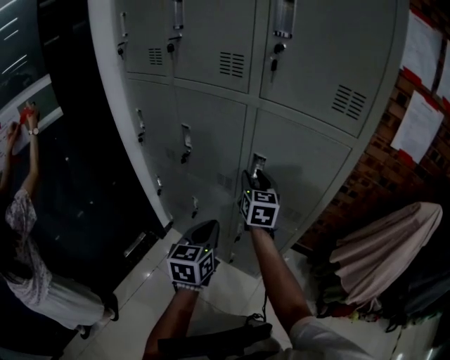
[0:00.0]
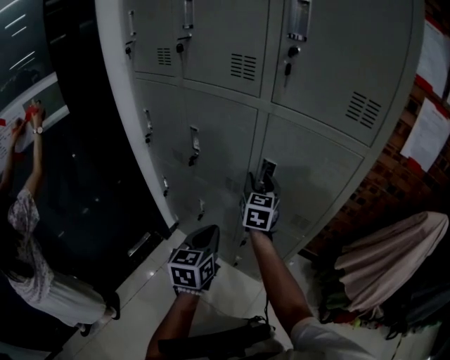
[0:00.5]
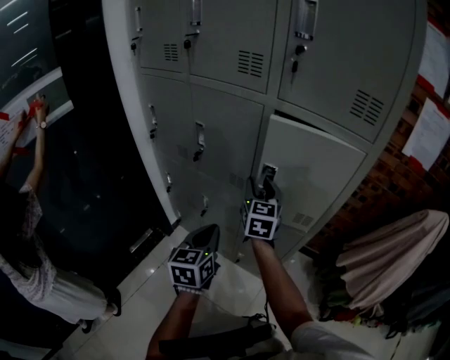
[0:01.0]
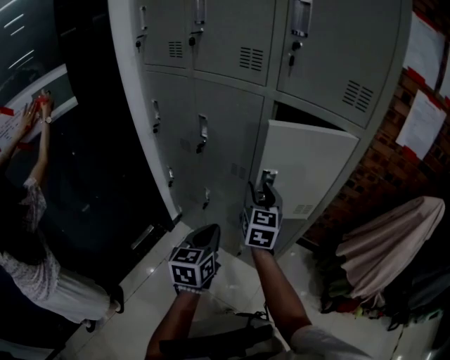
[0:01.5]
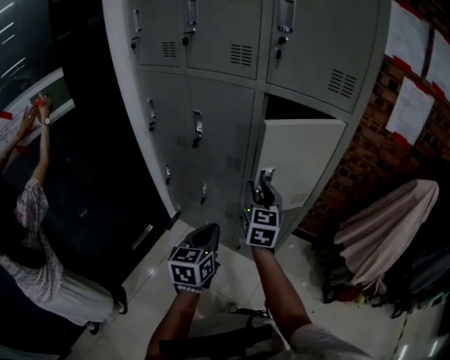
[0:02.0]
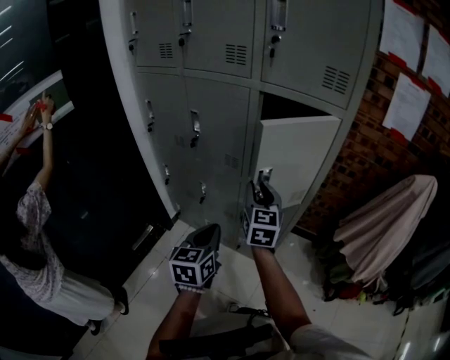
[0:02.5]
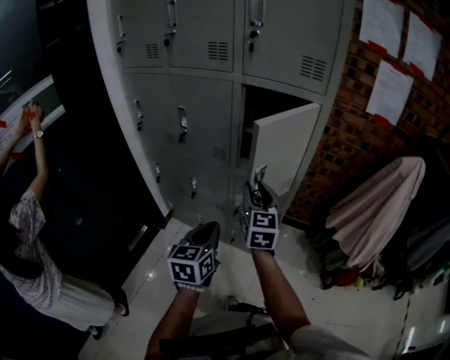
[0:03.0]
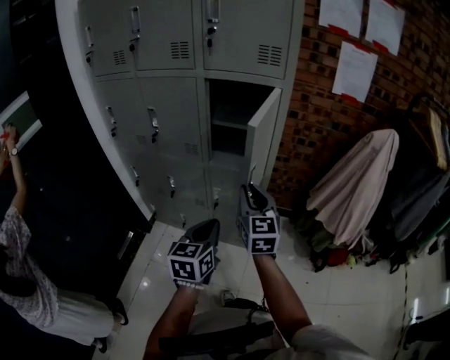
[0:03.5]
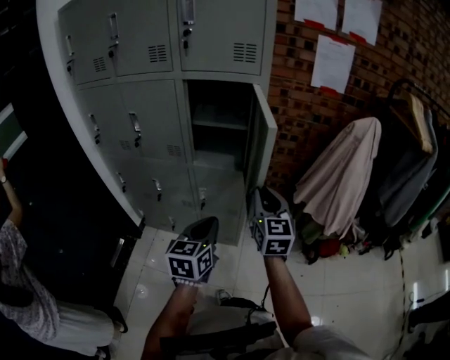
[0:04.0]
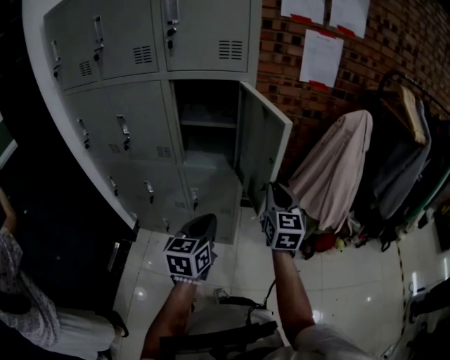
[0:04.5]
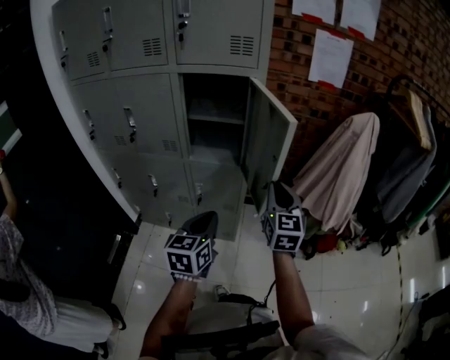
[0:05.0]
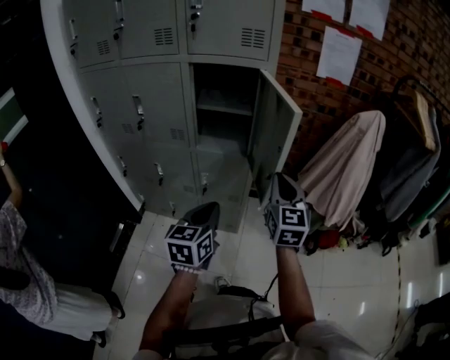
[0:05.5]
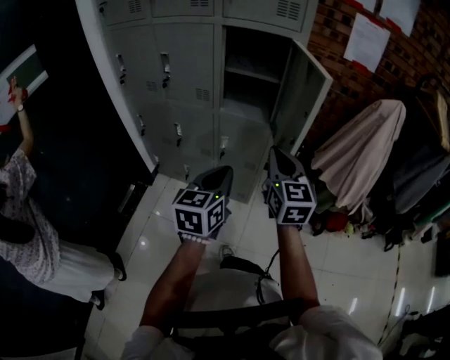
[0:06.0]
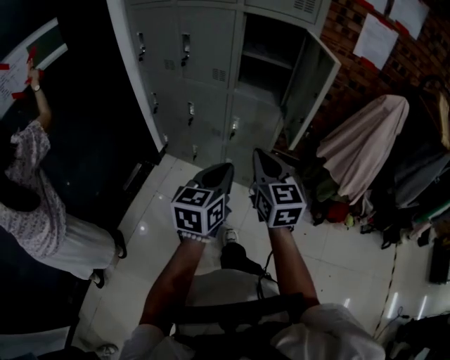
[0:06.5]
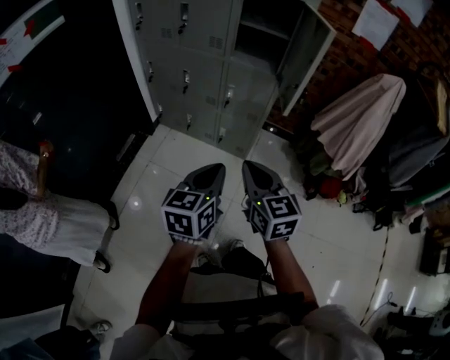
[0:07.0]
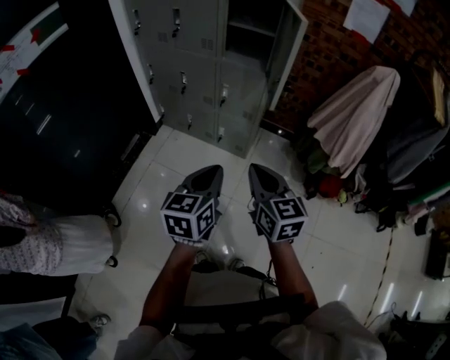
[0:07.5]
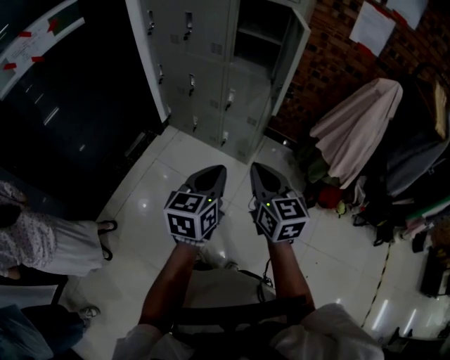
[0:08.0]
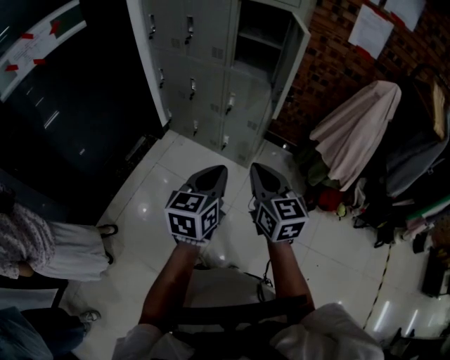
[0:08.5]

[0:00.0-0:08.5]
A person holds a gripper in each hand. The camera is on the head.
0:00.0 to 0:02.0: Both grippers move backward, about 10 cm.
0:02.0 to 0:04.0: The grippers both shift to the right and backward by approximately 20 cm. The right gripper closes.
0:04.0 to 0:06.5: The left gripper heads backward, covering some 15 cm. Meanwhile the right gripper travels backward and to the left by some 20 cm.
0:06.5 to 0:08.5: Both grippers move backward and to the right, roughly 20 cm.

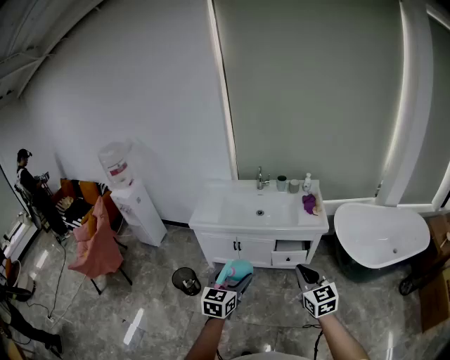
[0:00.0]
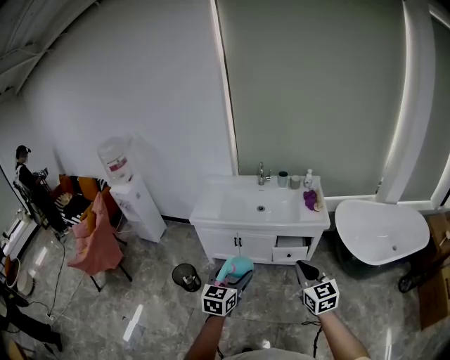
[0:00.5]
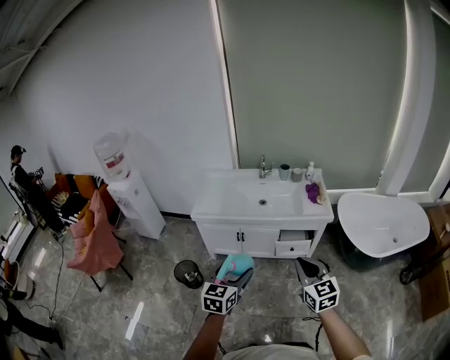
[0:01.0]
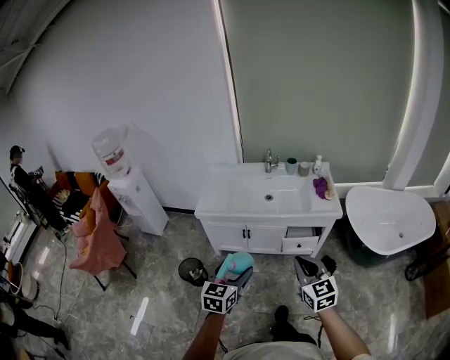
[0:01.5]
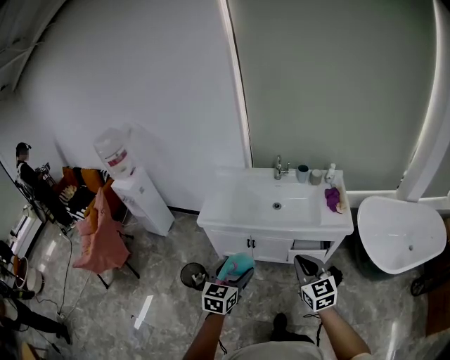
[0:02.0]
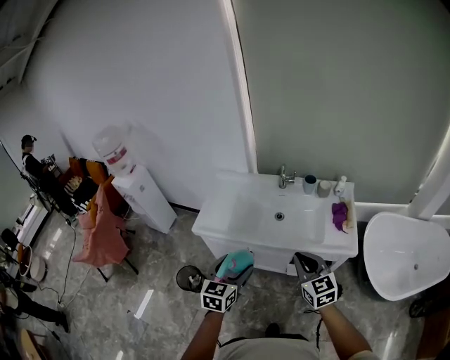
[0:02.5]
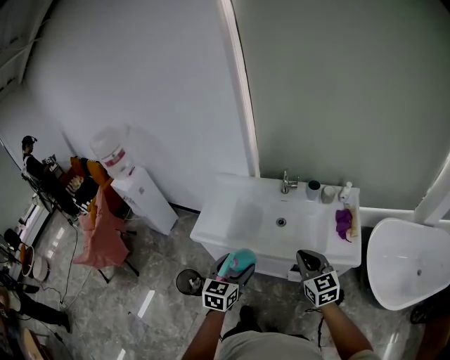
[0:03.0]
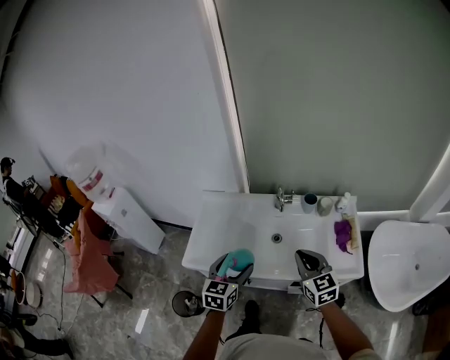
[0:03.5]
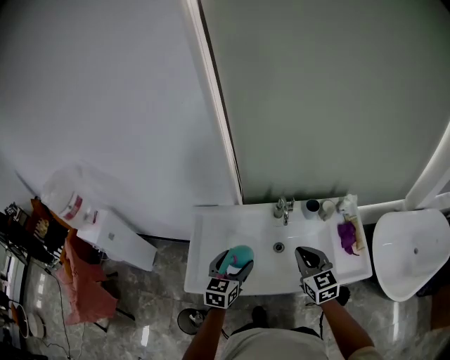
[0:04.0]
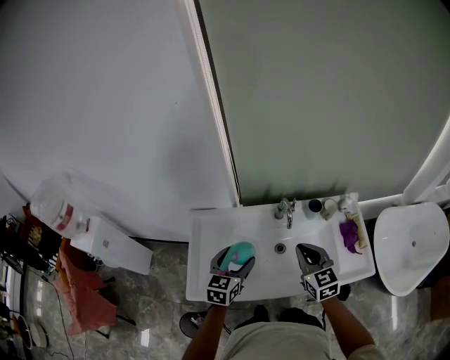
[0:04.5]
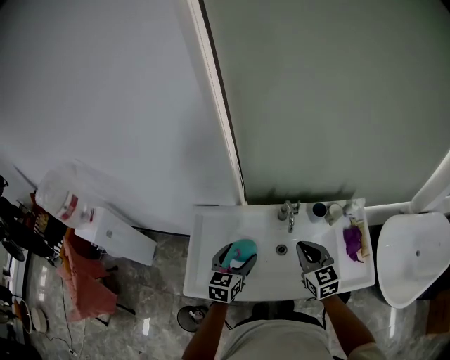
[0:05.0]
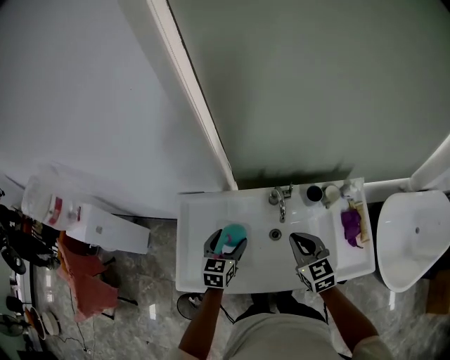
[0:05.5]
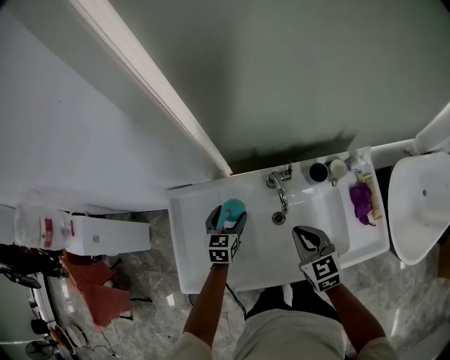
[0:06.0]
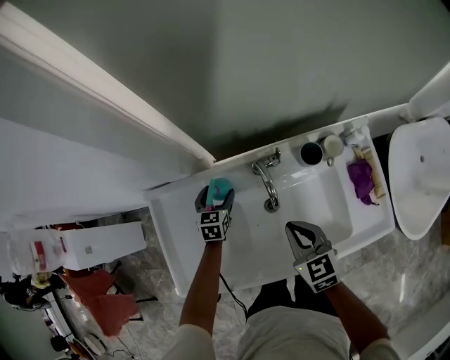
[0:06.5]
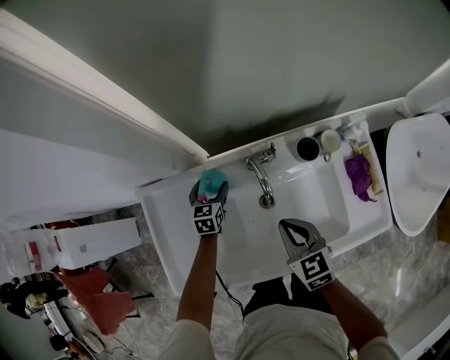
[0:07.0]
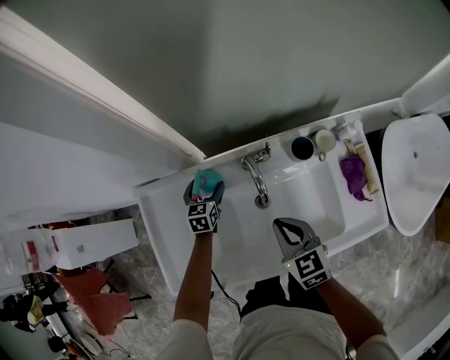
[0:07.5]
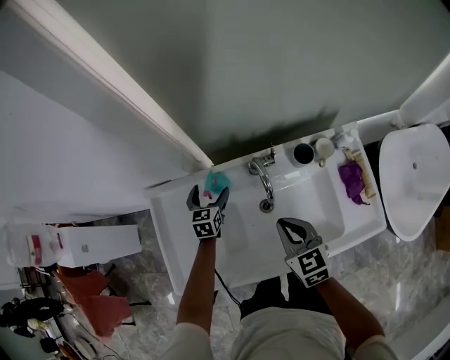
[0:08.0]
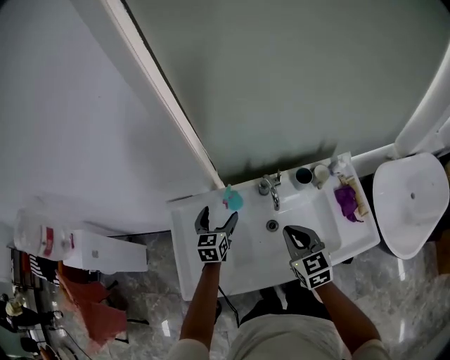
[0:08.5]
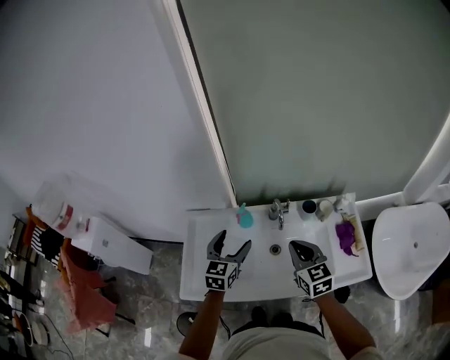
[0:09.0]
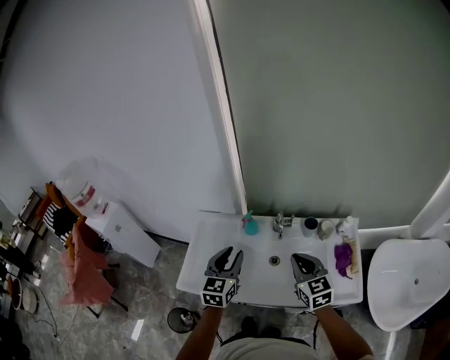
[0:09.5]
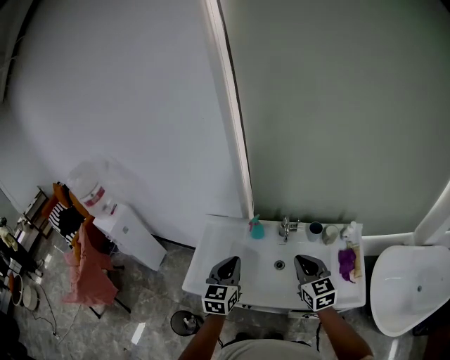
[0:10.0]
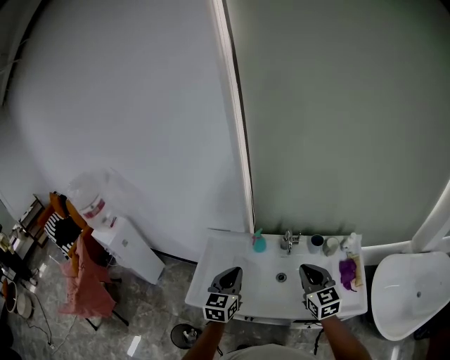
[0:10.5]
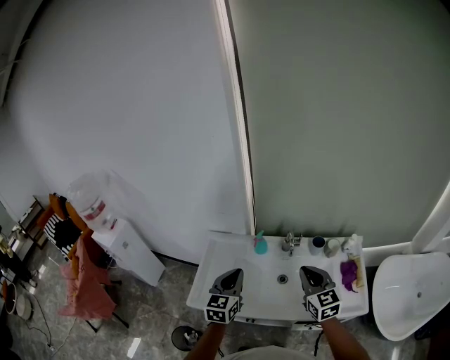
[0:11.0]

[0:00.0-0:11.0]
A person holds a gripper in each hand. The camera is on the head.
0:00.0 to 0:02.0: Both grippers move forward and to the left, some 20 cm.
0:02.0 to 0:03.5: The two grippers go about 35 cm forward.
0:03.5 to 0:05.5: The grippers both shift forward by approximately 25 cm.
0:05.5 to 0:07.5: The right gripper travels downward by some 10 cm; the left gripper heads downward and forward, covering roughly 30 cm.
0:07.5 to 0:09.0: The left gripper goes some 35 cm upward and backward, and changes its angle by about 20 degrees. The right gripper travels upward and backward by approximately 20 cm.
0:09.0 to 0:11.0: The left gripper shifts some 15 cm backward and upward, and closes up. The right gripper travels upward and backward by roughly 10 cm.

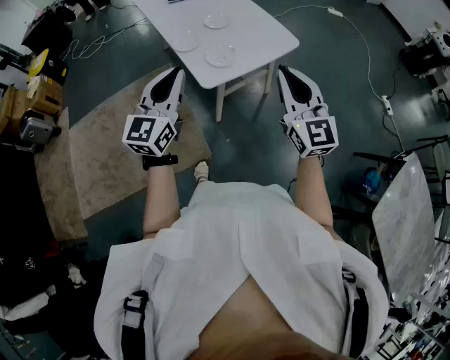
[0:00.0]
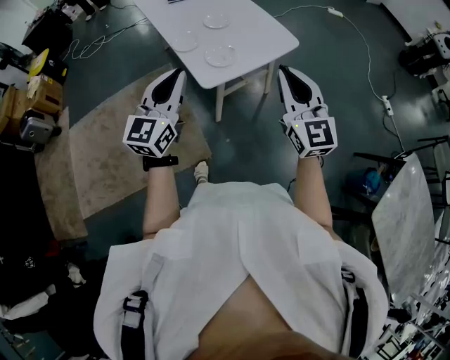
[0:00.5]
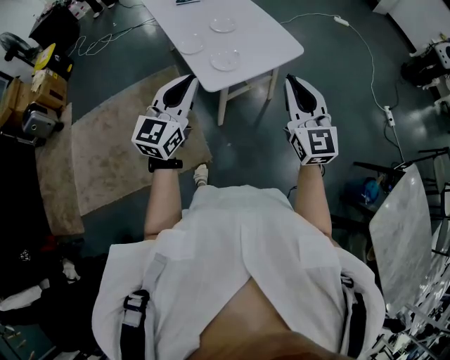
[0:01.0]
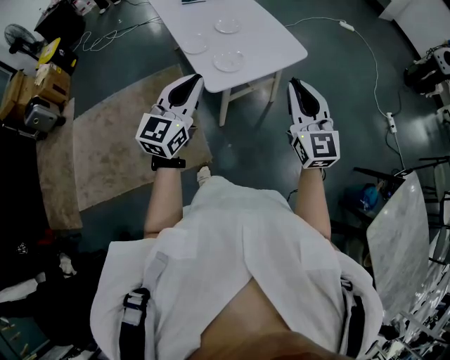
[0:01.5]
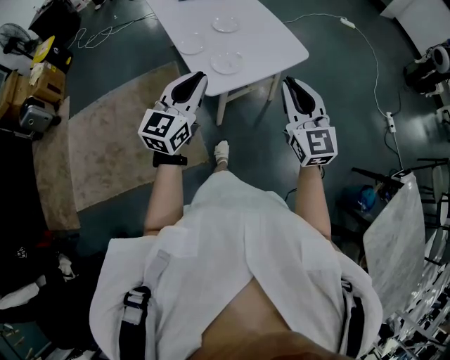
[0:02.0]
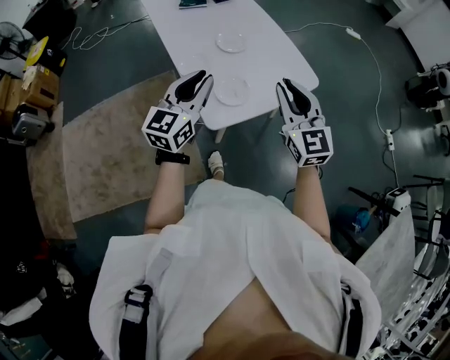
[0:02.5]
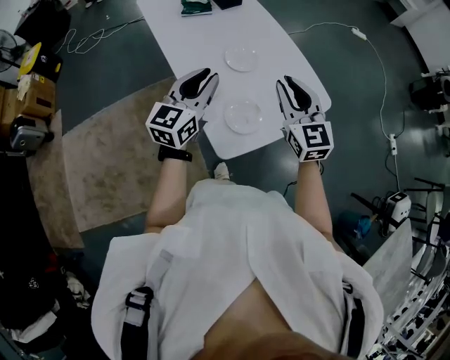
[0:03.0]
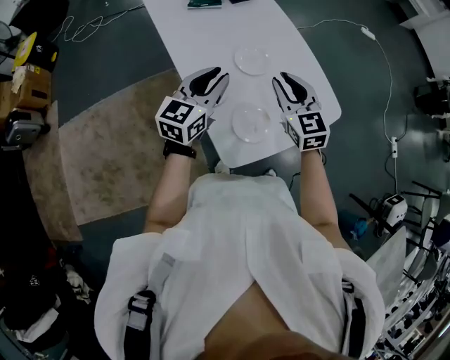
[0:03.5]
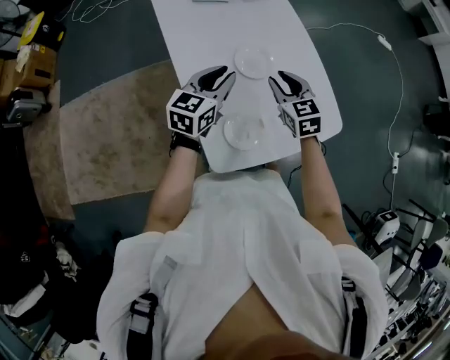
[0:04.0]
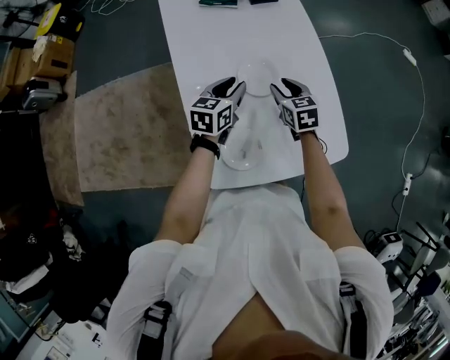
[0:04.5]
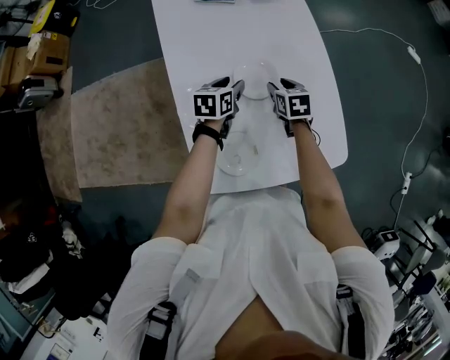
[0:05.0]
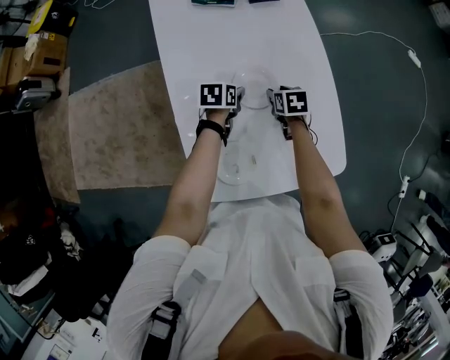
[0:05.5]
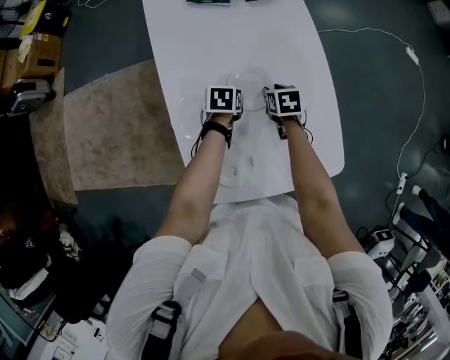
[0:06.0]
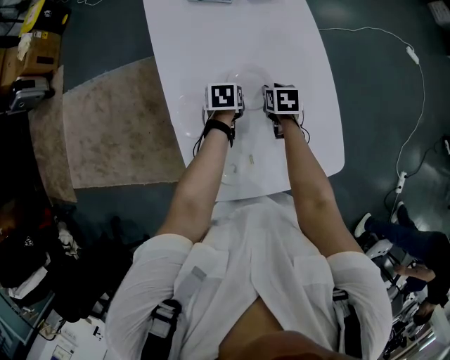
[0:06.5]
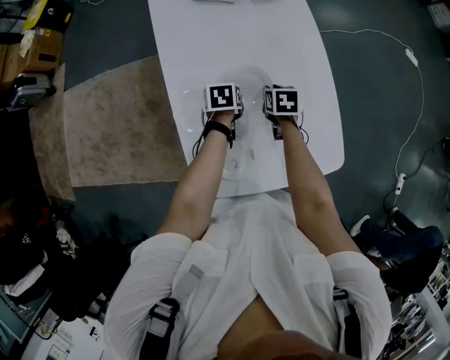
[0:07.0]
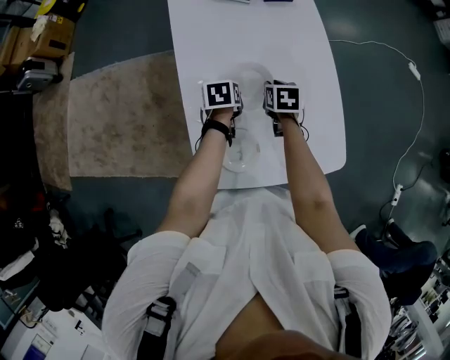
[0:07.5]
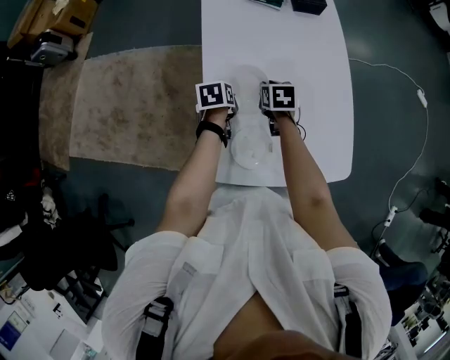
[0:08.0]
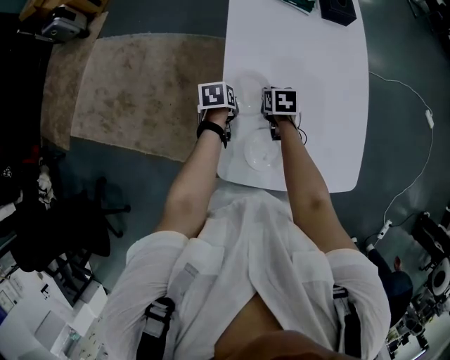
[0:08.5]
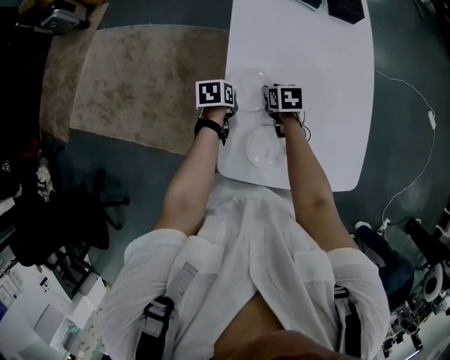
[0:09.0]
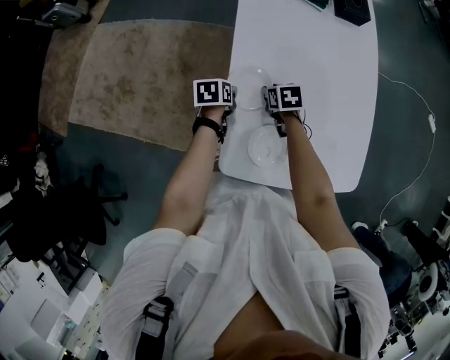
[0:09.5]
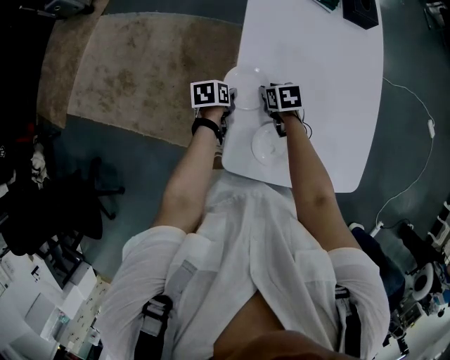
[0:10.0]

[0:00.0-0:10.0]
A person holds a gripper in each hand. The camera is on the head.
0:00.0 to 0:02.0: The right gripper is displaced forward by roughly 5 cm. The left gripper ends up approximately 5 cm from where it was.
0:02.0 to 0:04.0: Both grippers are carried forward, roughly 50 cm. The left gripper swivels approximately 20 degrees; the right gripper travels downward by approximately 20 cm, tips its fingers downward by some 30 degrees, and opens.
0:04.0 to 0:06.0: The grippers both shift downward and forward by about 25 cm. The right gripper turns by approximately 40 degrees; the left gripper tips its fingers downward by roughly 40 degrees.
0:06.0 to 0:08.0: The right gripper moves to the left and upward, about 15 cm, while the left gripper heads to the left and backward, covering some 15 cm, and turns by approximately 20 degrees.
0:08.0 to 0:10.0: The two grippers go approximately 15 cm to the left and downward. The right gripper swivels approximately 20 degrees.
